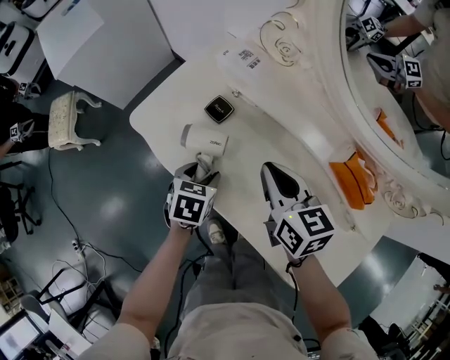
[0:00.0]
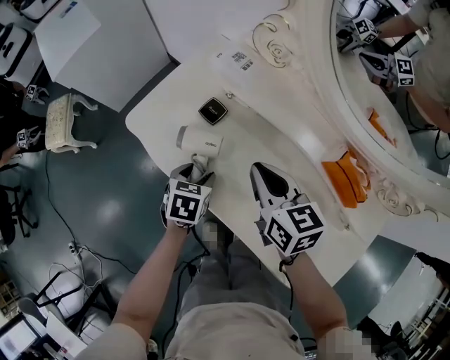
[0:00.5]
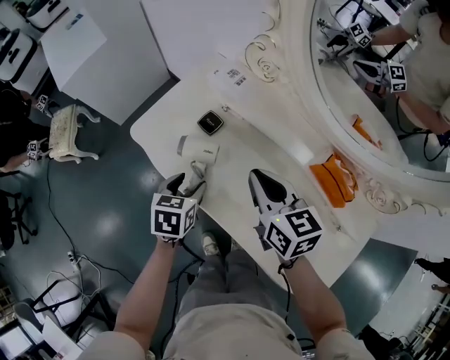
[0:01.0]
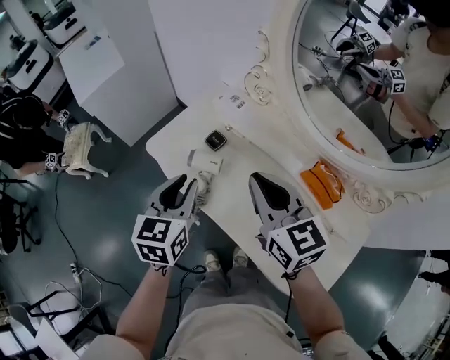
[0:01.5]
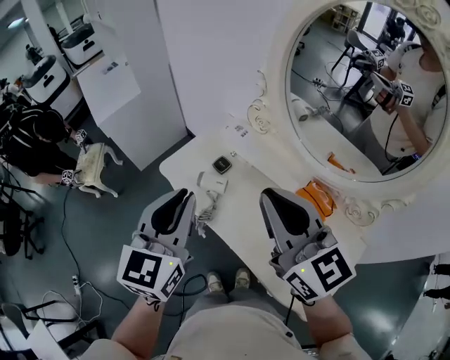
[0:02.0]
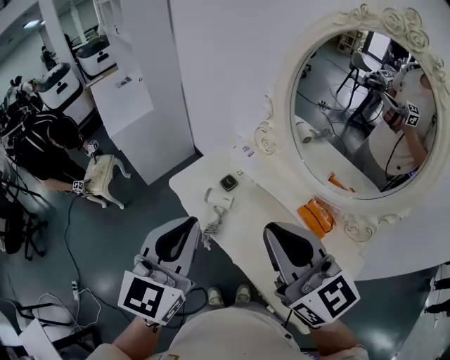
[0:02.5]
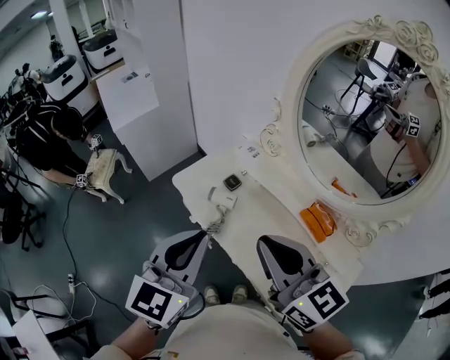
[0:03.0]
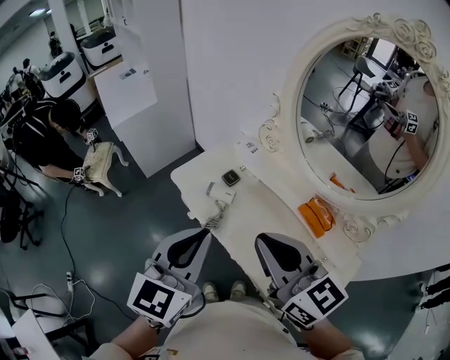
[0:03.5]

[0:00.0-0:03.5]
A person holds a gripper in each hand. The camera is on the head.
0:00.0 to 0:02.0: The two grippers go some 40 cm upward. The right gripper rotates some 40 degrees. The left gripper tips its fingers upward by about 50 degrees, and closes its fingers.
0:02.0 to 0:03.5: The two grippers go about 10 cm backward.

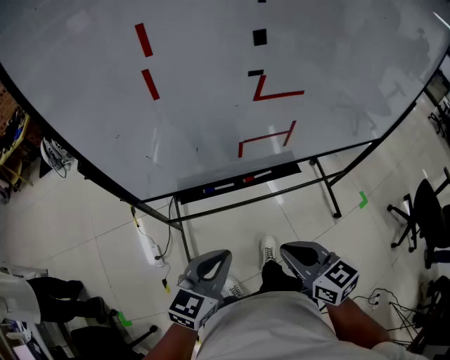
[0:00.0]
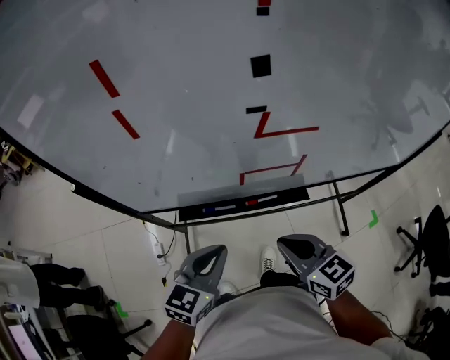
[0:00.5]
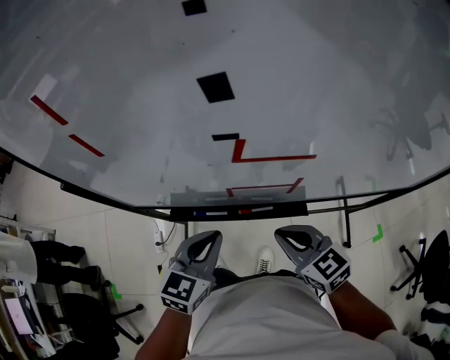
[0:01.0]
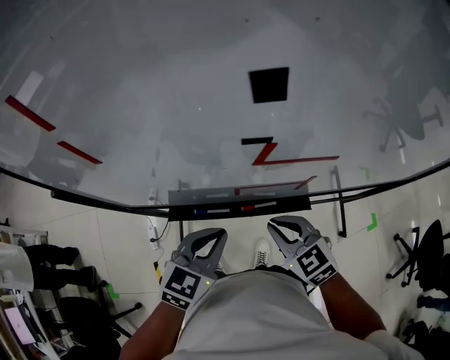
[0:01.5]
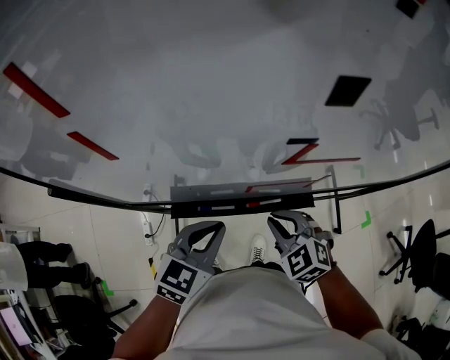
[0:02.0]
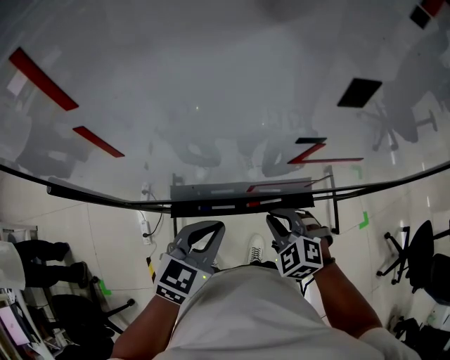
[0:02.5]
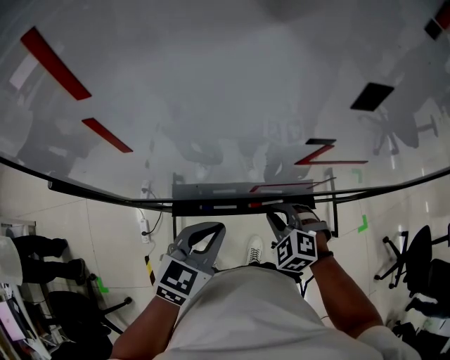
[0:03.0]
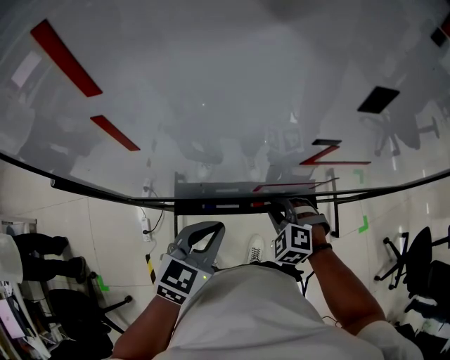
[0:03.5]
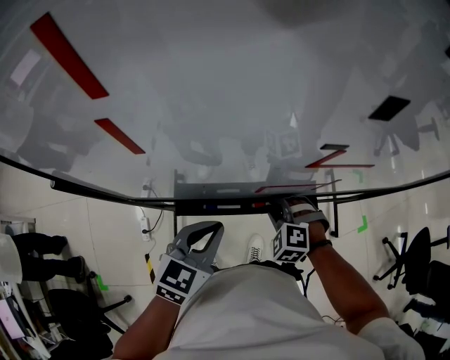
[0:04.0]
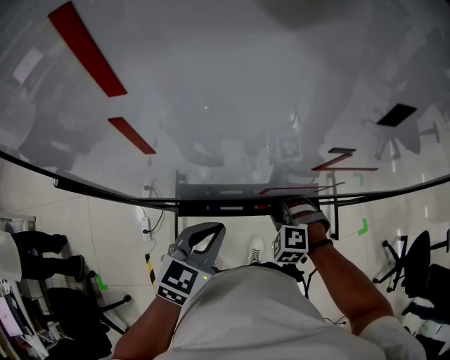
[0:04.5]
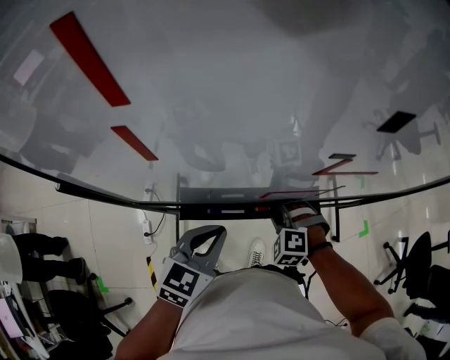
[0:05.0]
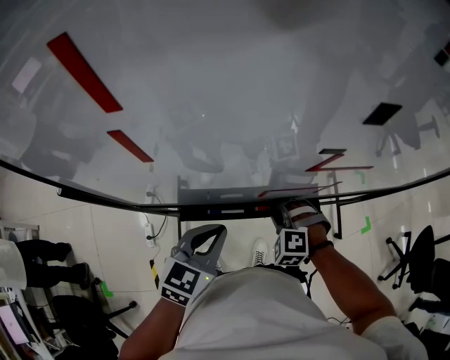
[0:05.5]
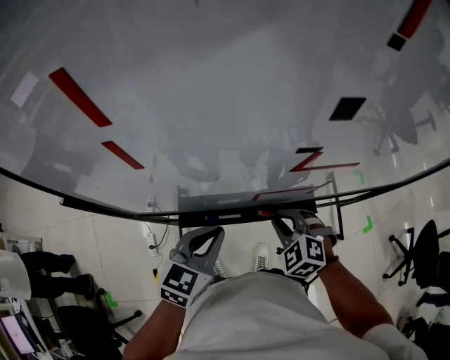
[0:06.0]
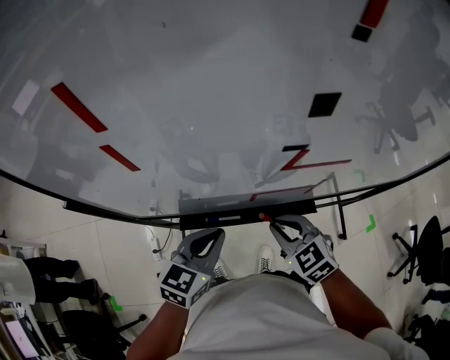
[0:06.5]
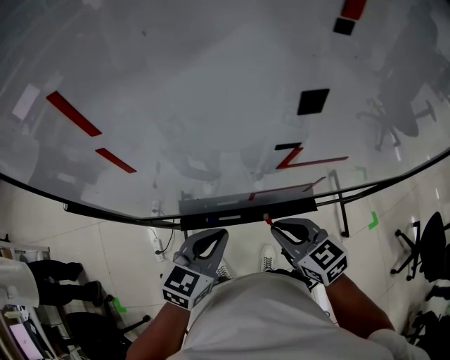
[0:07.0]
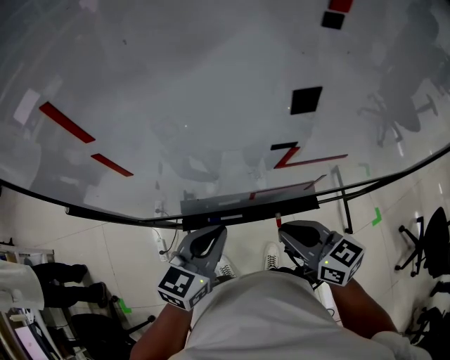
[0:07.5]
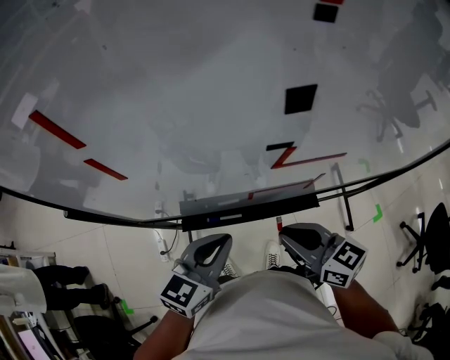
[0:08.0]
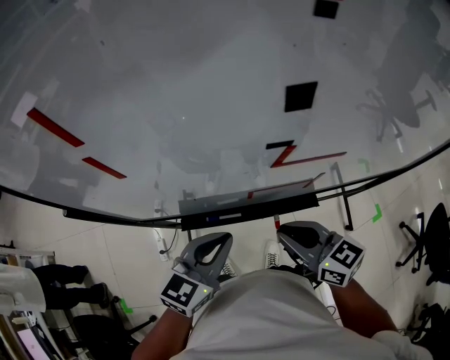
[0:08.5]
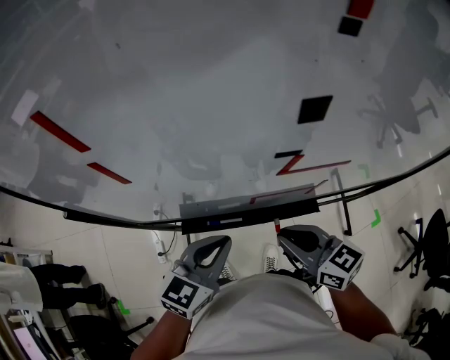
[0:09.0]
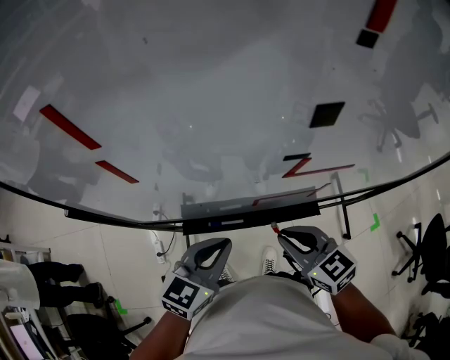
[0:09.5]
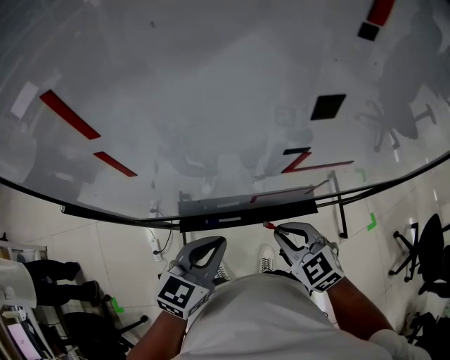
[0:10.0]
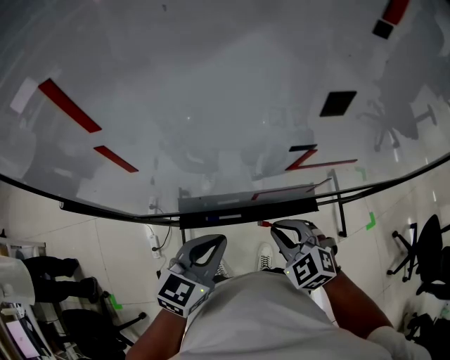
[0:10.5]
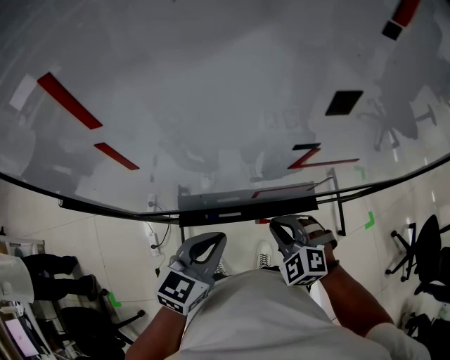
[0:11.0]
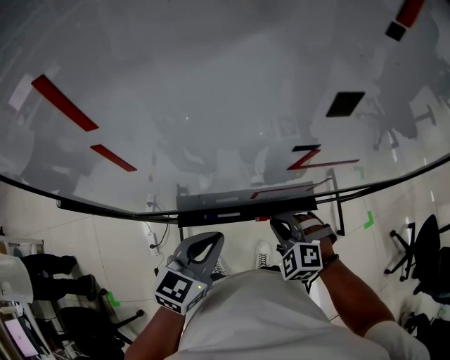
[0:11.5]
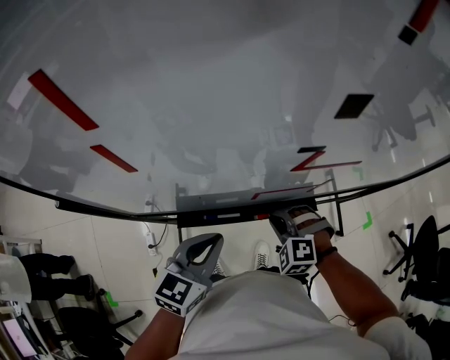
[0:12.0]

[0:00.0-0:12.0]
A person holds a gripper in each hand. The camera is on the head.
0:00.0 to 0:02.0: The right gripper travels forward and downward by about 20 cm, and rotates around the line of its fingers by roughly 40 degrees, counterclockwise from behind. The left gripper moves forward, some 20 cm.
0:02.0 to 0:04.0: The right gripper moves downward, some 10 cm, and turns by some 30 degrees.
0:04.0 to 0:06.0: The right gripper shifts some 5 cm upward.
0:06.0 to 0:08.0: The right gripper travels upward by roughly 10 cm, and tilts its fingers some 30 degrees upward.
0:08.0 to 0:10.0: The right gripper moves downward, some 5 cm, and turns by some 40 degrees.
0:10.0 to 0:12.0: The right gripper goes roughly 10 cm downward, and turns by roughly 40 degrees.

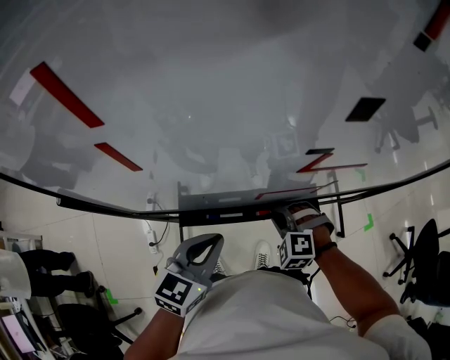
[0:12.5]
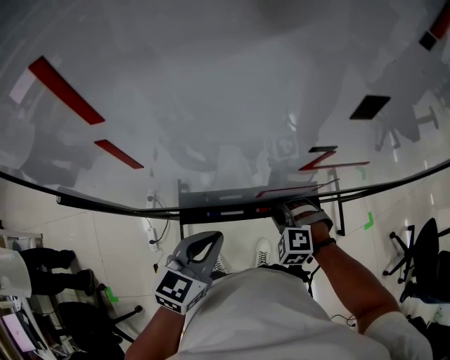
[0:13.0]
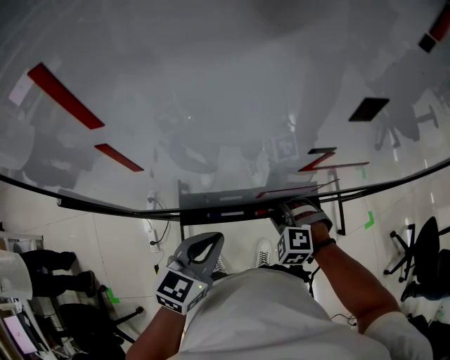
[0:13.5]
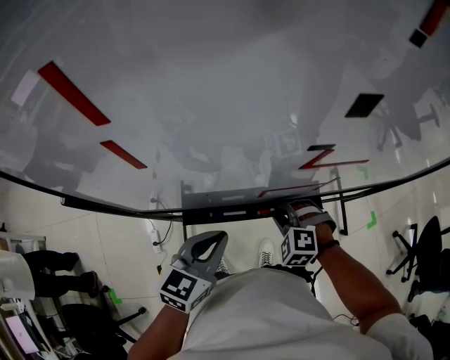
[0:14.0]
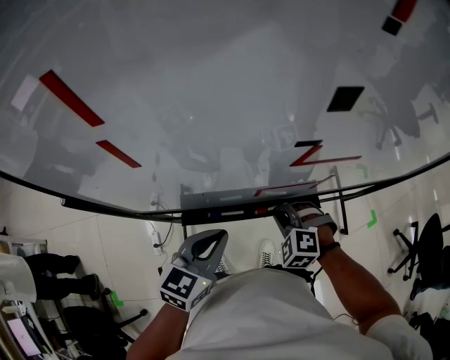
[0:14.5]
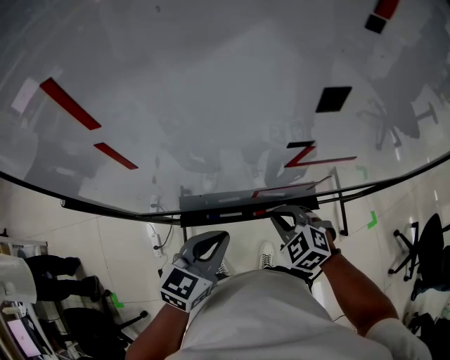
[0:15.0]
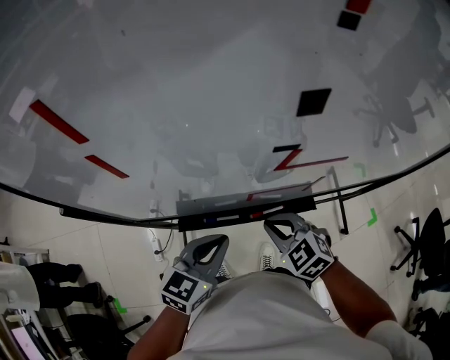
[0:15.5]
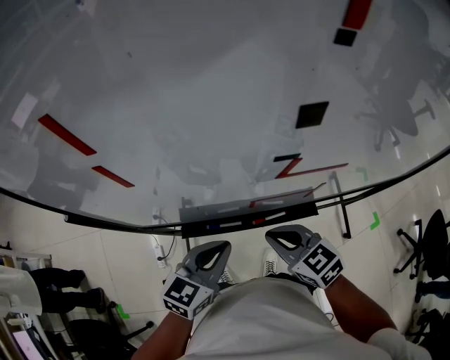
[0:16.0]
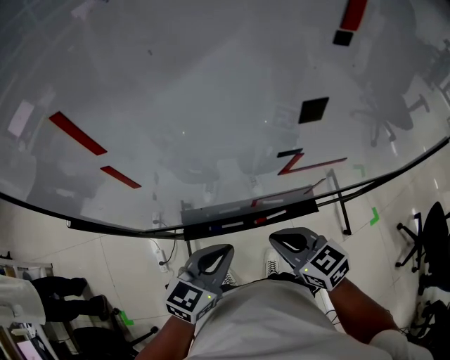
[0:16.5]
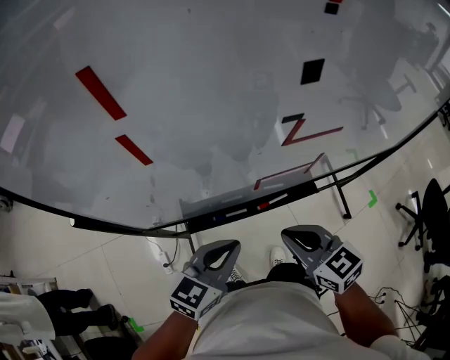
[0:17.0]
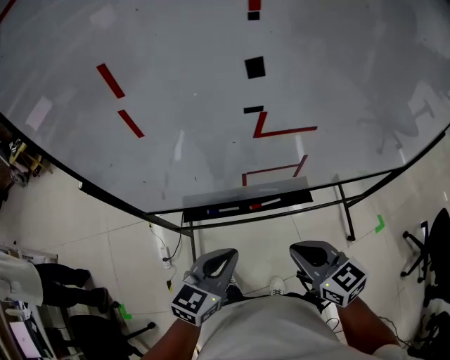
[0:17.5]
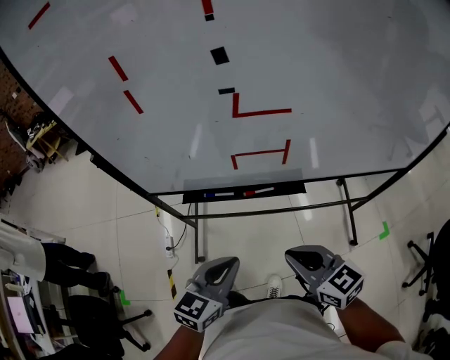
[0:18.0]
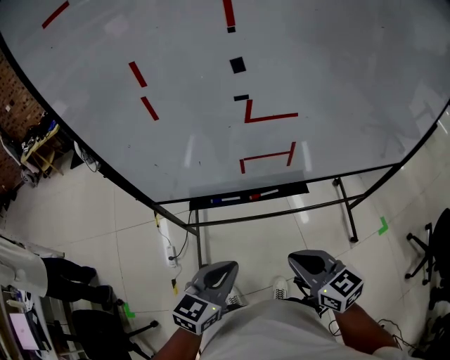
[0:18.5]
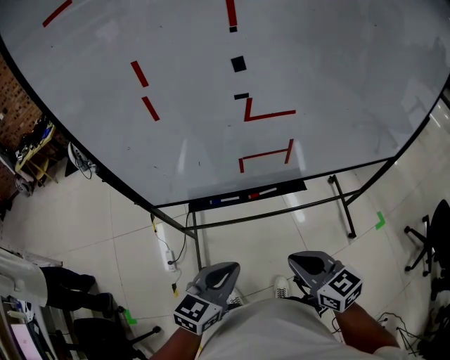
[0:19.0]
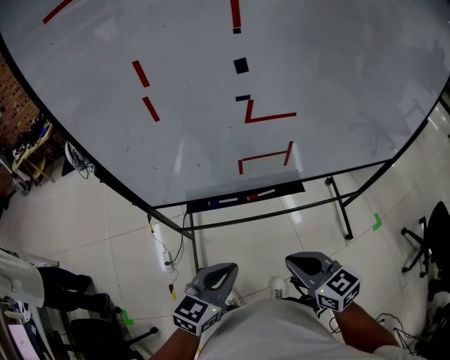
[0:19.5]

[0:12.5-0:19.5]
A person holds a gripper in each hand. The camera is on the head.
0:12.5 to 0:14.5: The grippers stay close to where they were, moving slightly.
0:14.5 to 0:16.0: The right gripper moves upward, some 10 cm, and rolls clockwise, seen from behind, by about 50 degrees.
0:16.0 to 0:17.5: The right gripper heads backward and to the right, covering some 10 cm. The left gripper shifts approximately 10 cm backward.
0:17.5 to 0:19.5: Both grippers move backward, approximately 10 cm.

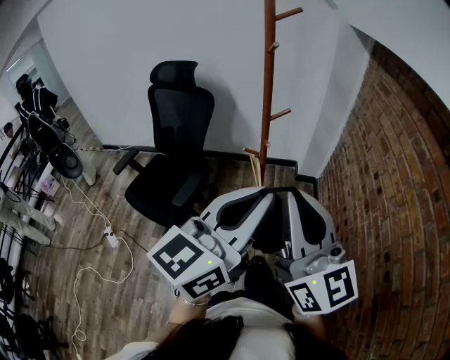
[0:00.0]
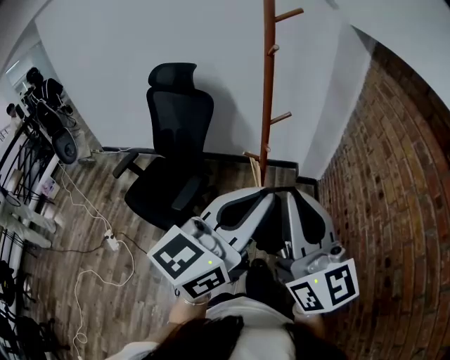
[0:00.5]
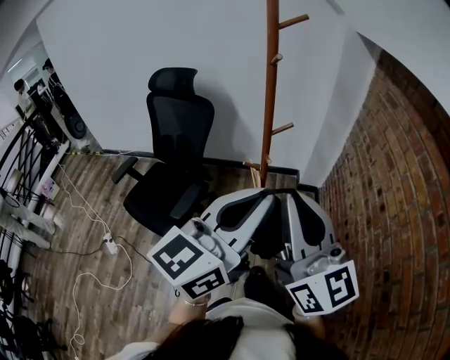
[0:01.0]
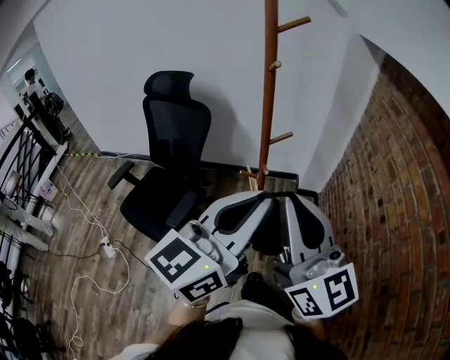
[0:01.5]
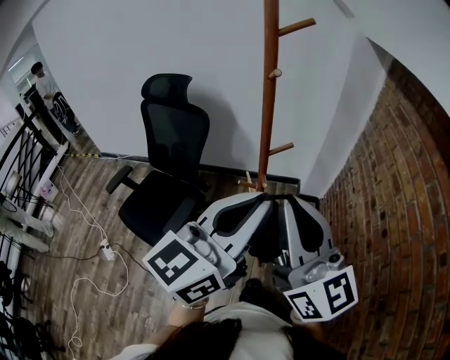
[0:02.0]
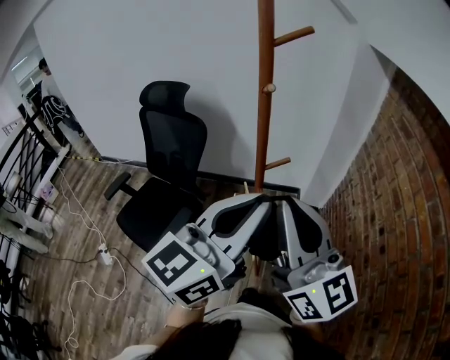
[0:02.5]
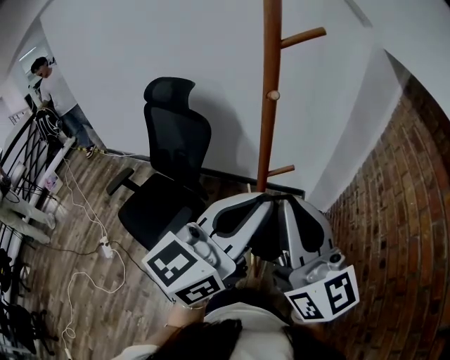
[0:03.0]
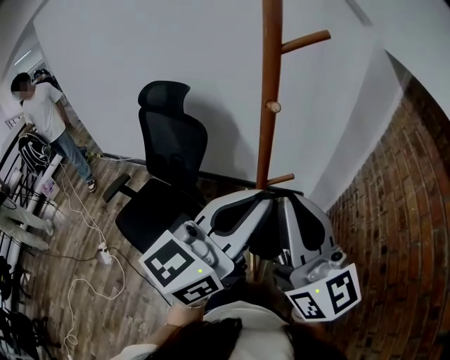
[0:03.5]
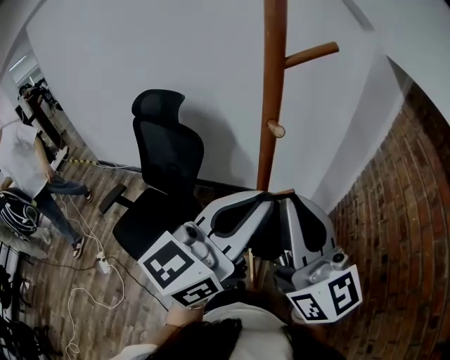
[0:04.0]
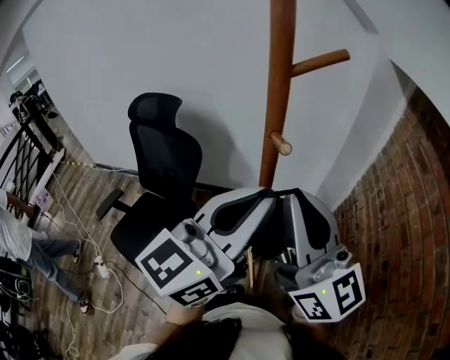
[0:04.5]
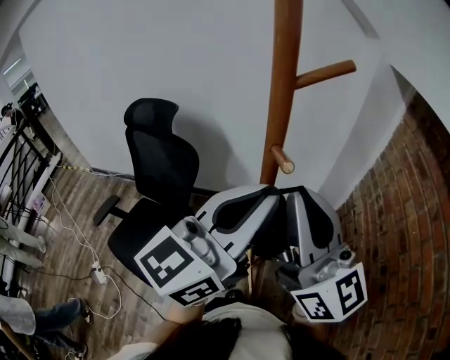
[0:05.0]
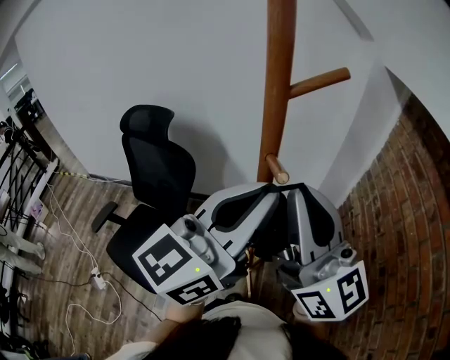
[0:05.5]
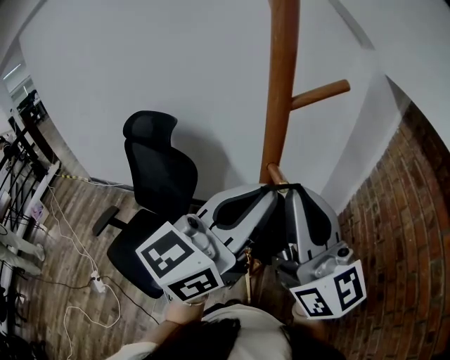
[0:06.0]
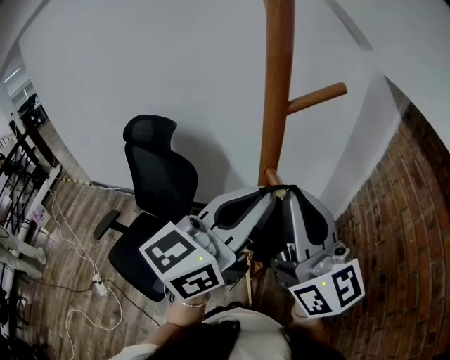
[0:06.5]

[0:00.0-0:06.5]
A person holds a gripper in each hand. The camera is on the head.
0:00.0 to 0:02.0: Both grippers move forward, roughly 15 cm.
0:02.0 to 0:04.5: Both grippers travel together forward, some 15 cm.
0:04.5 to 0:06.5: The two grippers go about 5 cm forward.
